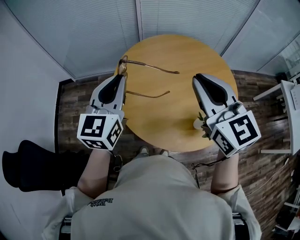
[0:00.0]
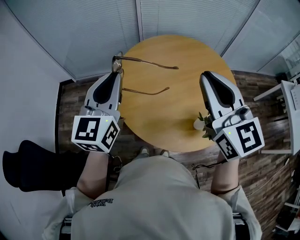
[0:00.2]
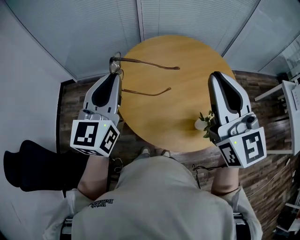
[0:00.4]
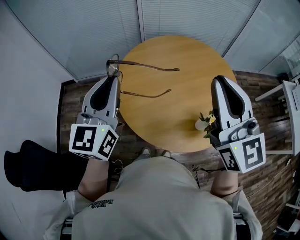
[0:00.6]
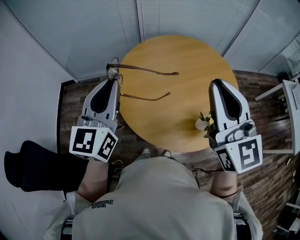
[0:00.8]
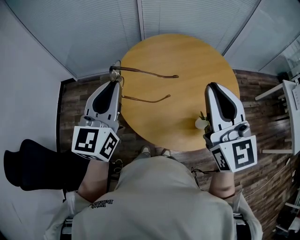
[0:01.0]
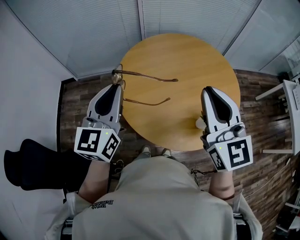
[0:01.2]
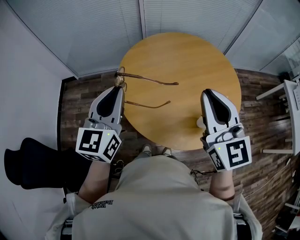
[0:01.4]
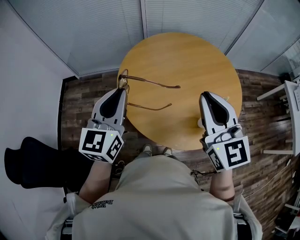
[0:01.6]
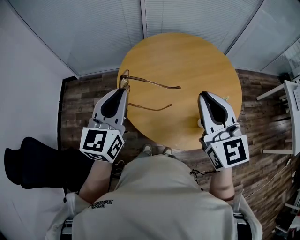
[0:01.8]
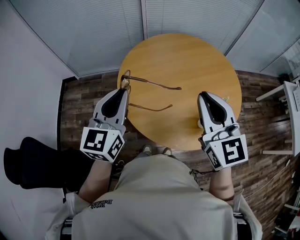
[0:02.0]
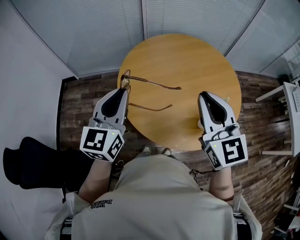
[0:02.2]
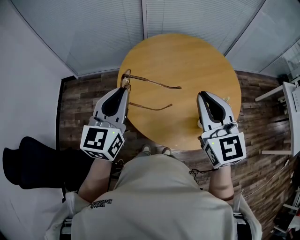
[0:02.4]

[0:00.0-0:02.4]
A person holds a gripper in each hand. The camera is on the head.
0:01.2 to 0:02.4: The grippers stay close to where they were, moving slightly.

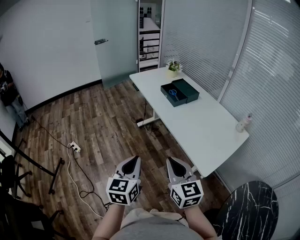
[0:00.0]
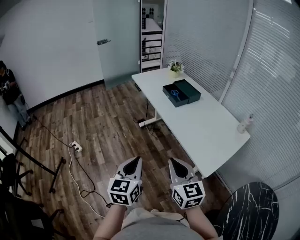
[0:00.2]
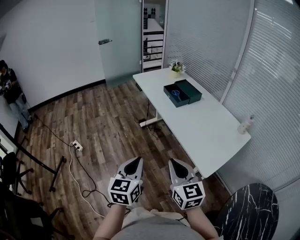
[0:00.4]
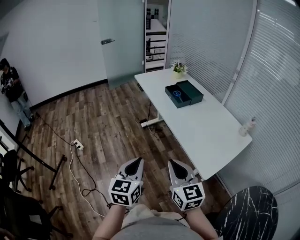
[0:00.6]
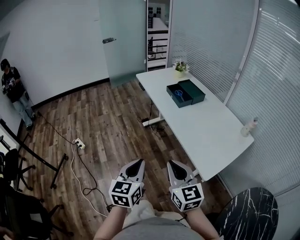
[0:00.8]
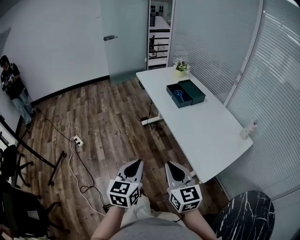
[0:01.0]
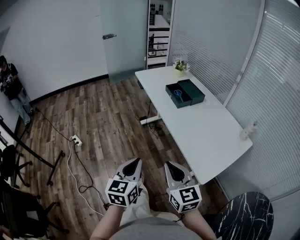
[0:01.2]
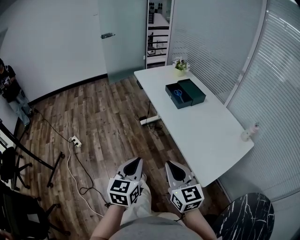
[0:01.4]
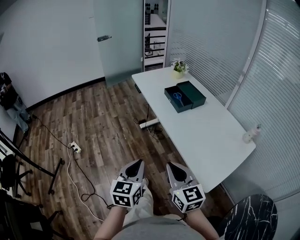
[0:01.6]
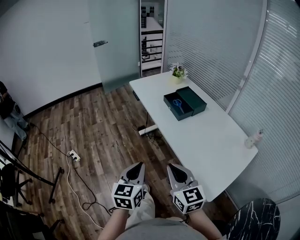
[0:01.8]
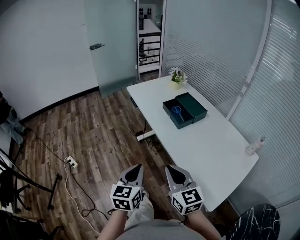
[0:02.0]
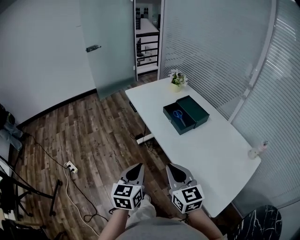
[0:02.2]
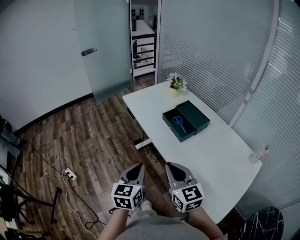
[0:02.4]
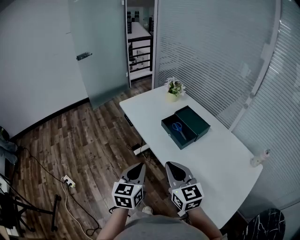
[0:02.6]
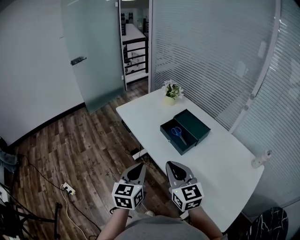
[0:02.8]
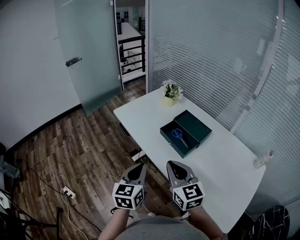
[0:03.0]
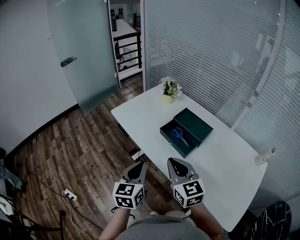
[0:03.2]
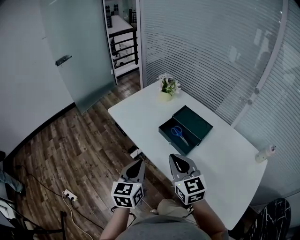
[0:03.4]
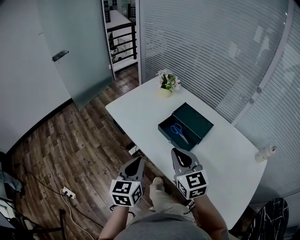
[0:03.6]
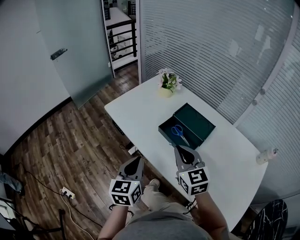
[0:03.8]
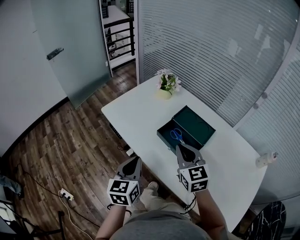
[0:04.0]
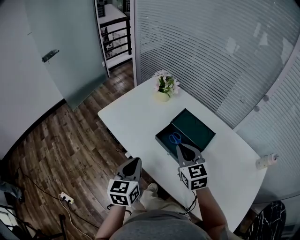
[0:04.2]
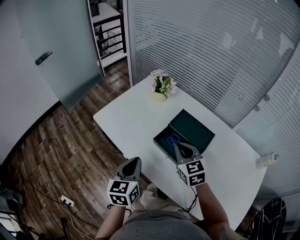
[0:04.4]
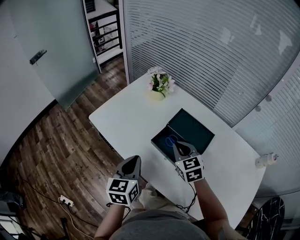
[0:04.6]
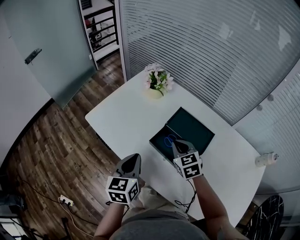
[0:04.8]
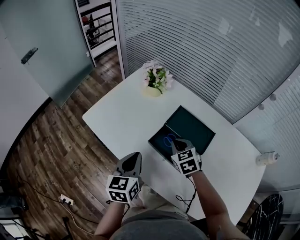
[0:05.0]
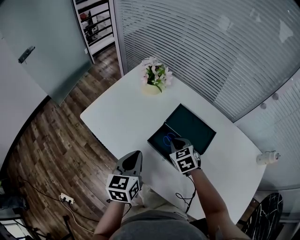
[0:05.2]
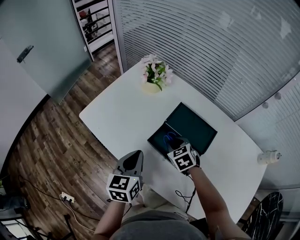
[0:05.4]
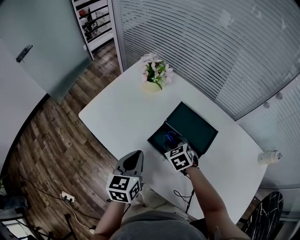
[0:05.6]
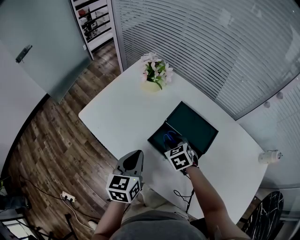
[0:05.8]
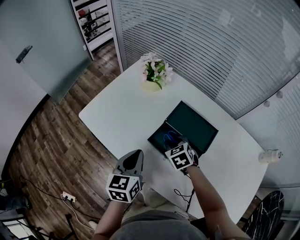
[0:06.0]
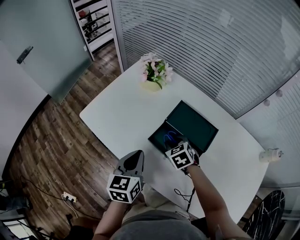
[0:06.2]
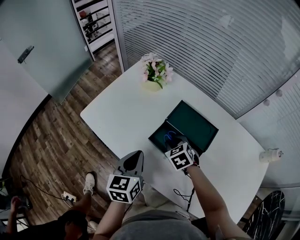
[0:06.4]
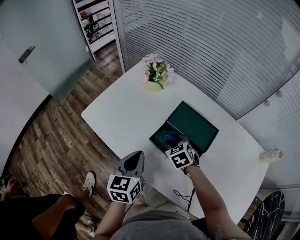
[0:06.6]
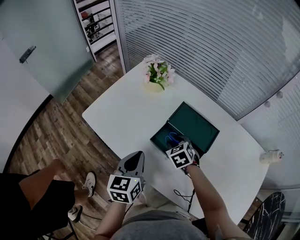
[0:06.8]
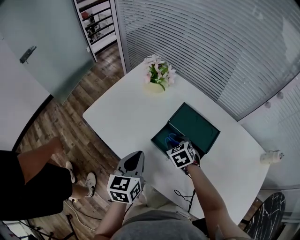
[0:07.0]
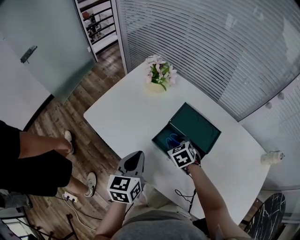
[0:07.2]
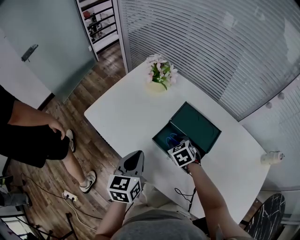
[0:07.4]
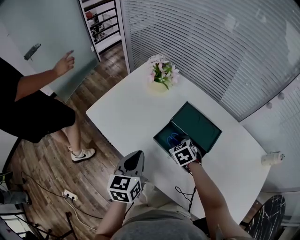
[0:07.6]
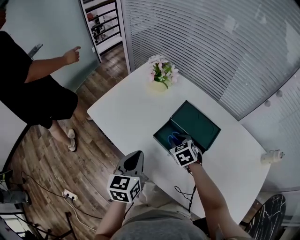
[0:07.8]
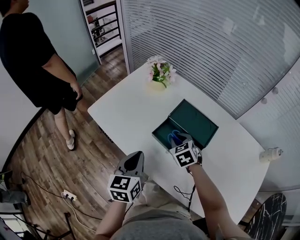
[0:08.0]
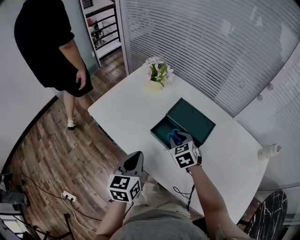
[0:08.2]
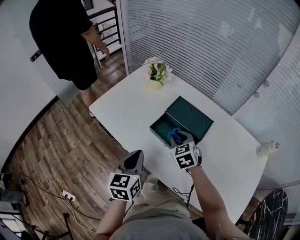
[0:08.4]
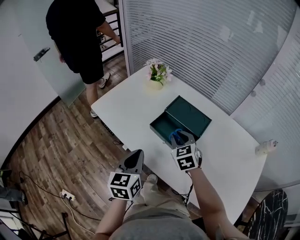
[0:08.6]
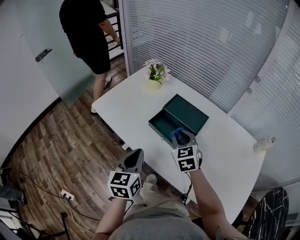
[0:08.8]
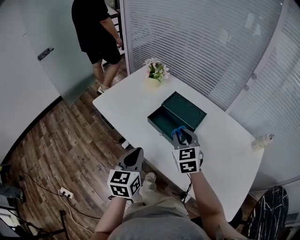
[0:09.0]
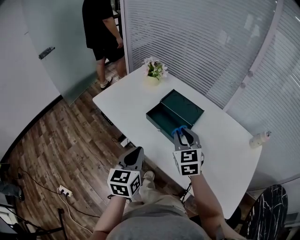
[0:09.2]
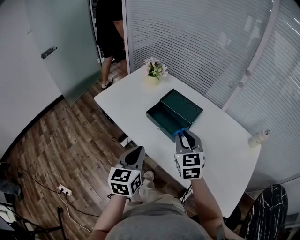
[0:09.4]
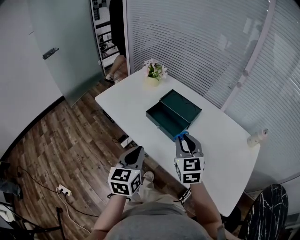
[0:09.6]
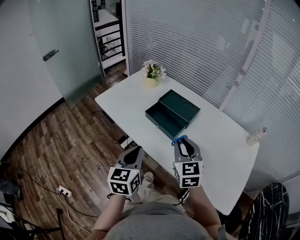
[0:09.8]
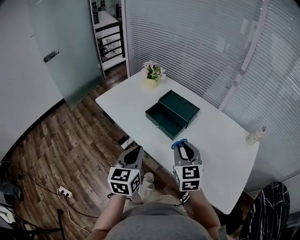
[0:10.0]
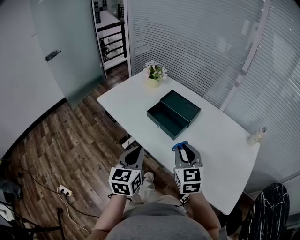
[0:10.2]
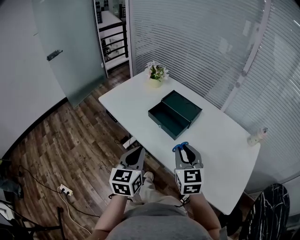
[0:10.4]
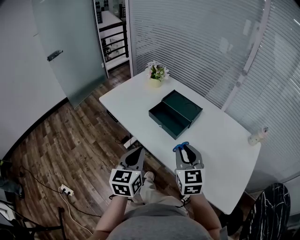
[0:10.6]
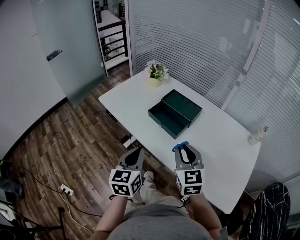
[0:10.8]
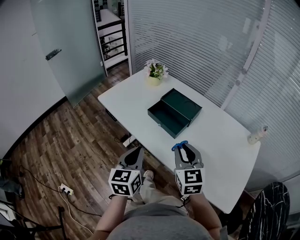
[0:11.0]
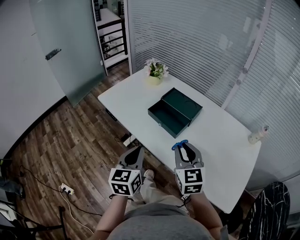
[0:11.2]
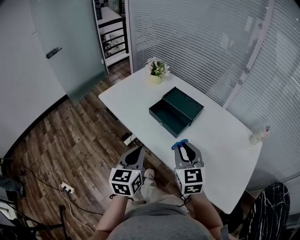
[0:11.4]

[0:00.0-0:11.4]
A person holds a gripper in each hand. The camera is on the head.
0:00.0 to 0:01.4: The left gripper changes place by about 5 cm.
0:01.4 to 0:02.8: The pair of grippers is taken forward, about 40 cm.
0:02.8 to 0:04.2: The grippers both shift forward by some 25 cm.
0:04.2 to 0:05.6: The right gripper moves downward and forward, some 20 cm, tilts its fingers roughly 30 degrees downward, and opens. The left gripper travels forward by about 10 cm.
0:05.6 to 0:07.2: The grippers stay close to where they were, moving slightly.
0:07.2 to 0:08.6: The left gripper travels backward by about 10 cm, while the right gripper heads upward and backward, covering roughly 15 cm, and turns by roughly 20 degrees.
0:08.6 to 0:10.0: The right gripper moves backward and upward, roughly 25 cm, and turns by approximately 20 degrees, while the left gripper travels backward by about 15 cm.
0:10.0 to 0:11.4: The grippers move only a little.

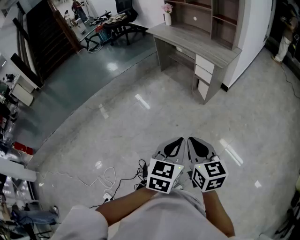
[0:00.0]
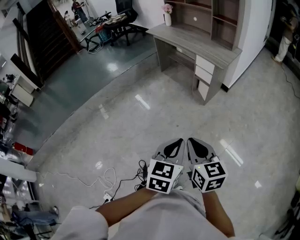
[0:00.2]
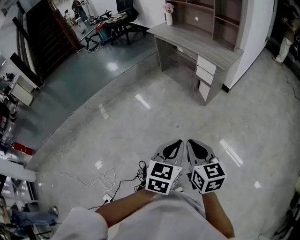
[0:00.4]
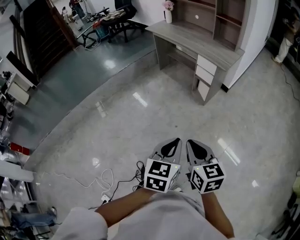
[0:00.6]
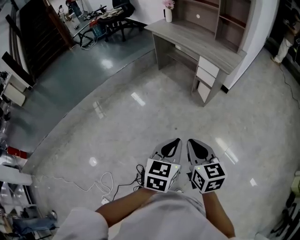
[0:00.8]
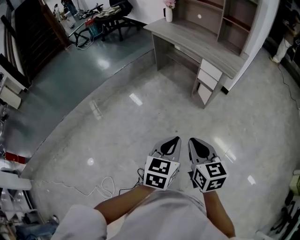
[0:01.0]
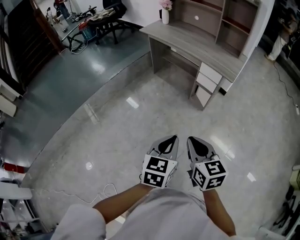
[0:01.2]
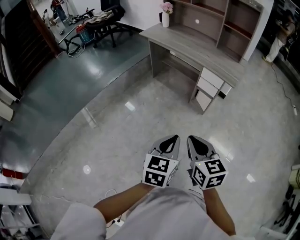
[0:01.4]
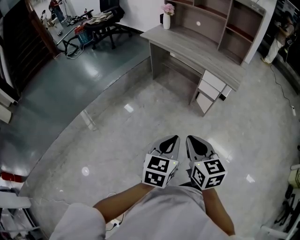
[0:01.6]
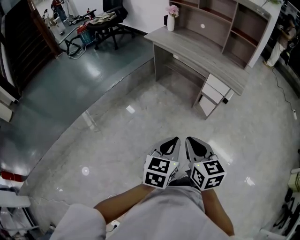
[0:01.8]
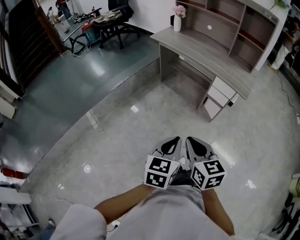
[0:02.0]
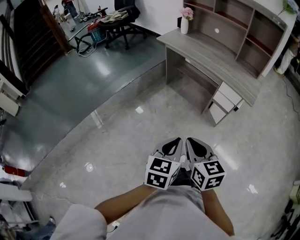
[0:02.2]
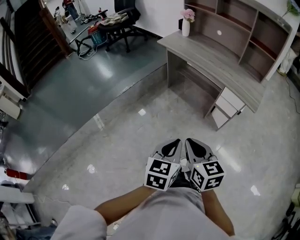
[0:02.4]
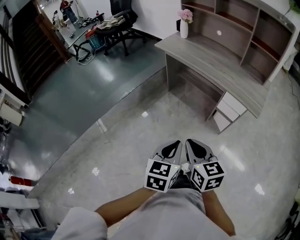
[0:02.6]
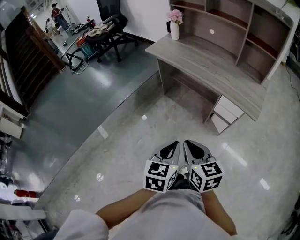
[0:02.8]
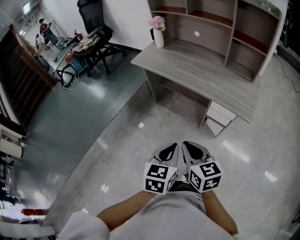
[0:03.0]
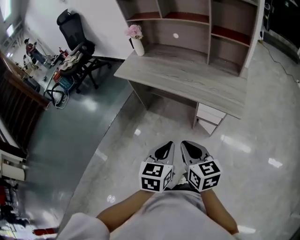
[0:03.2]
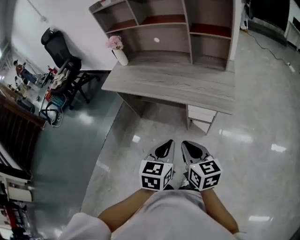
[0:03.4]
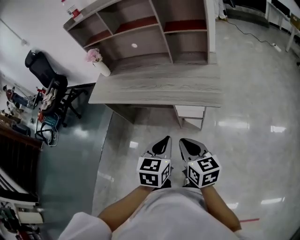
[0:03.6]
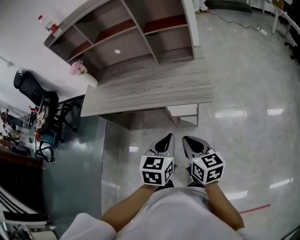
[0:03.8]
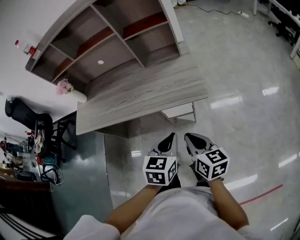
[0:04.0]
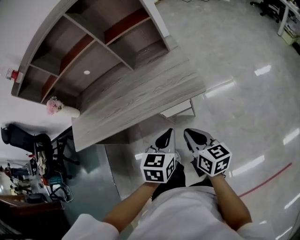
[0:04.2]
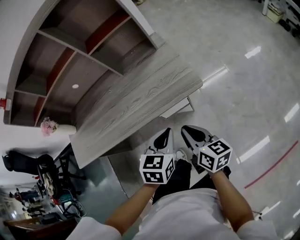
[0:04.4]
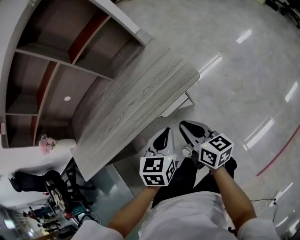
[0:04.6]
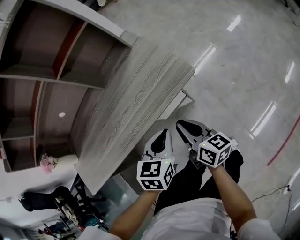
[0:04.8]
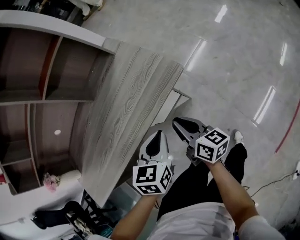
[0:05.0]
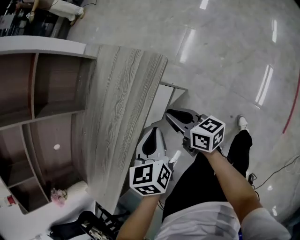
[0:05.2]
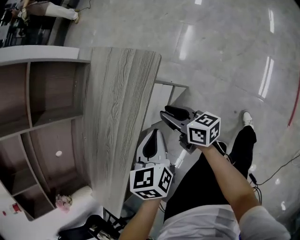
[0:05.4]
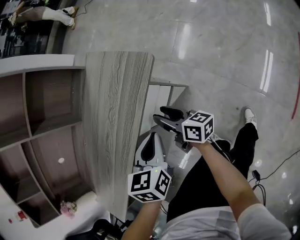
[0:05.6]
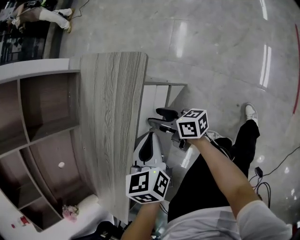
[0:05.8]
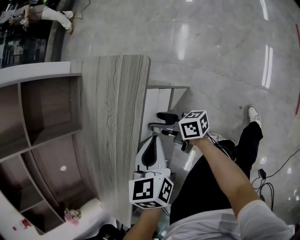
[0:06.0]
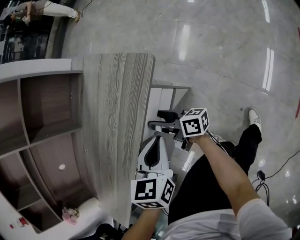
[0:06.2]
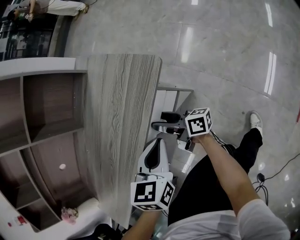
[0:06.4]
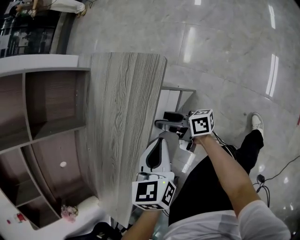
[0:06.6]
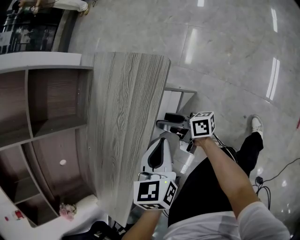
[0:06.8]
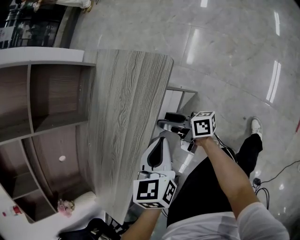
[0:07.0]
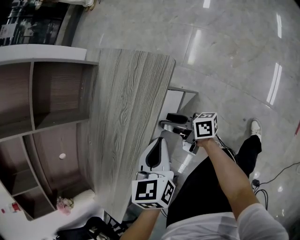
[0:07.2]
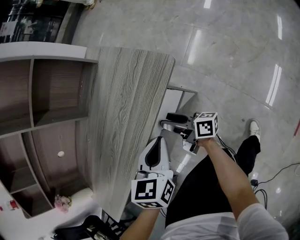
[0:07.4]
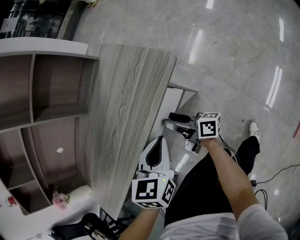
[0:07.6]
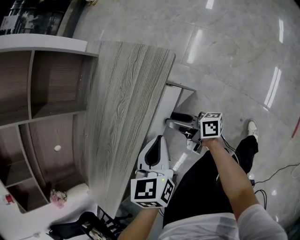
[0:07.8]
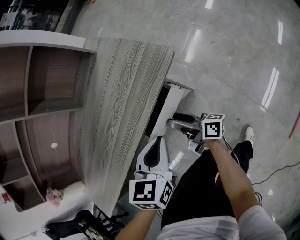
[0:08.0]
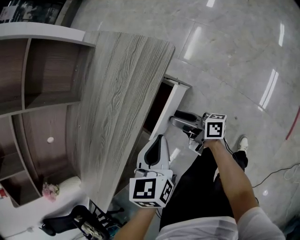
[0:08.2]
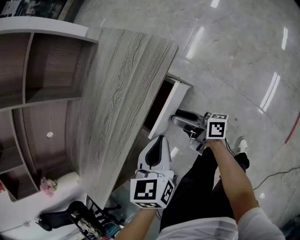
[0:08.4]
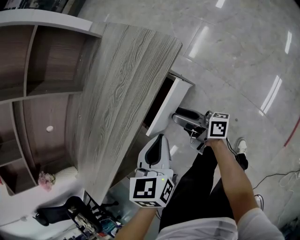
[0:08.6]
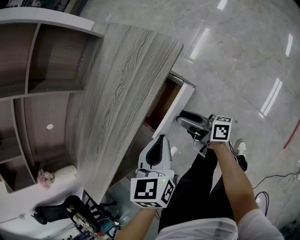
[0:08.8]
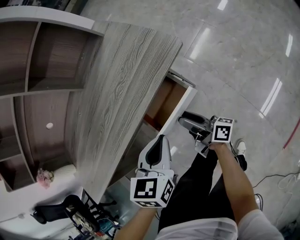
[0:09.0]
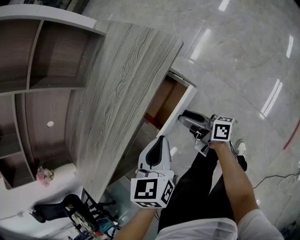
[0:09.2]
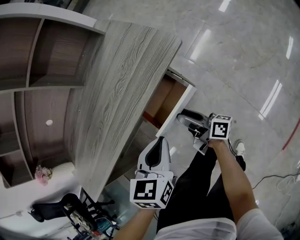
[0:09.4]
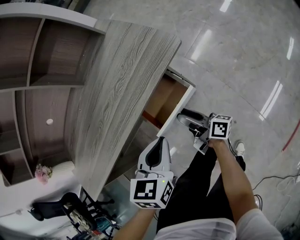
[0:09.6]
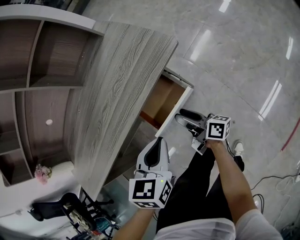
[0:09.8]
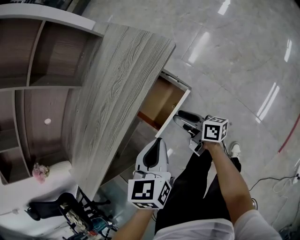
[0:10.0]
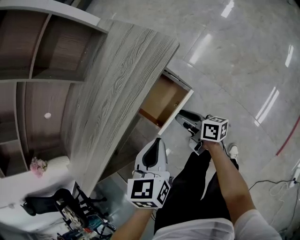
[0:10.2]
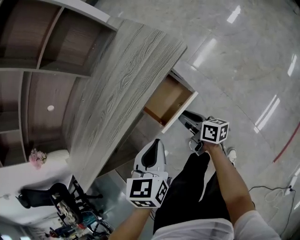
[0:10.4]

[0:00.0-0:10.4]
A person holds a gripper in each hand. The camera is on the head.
0:00.0 to 0:01.4: Both grippers move forward and to the left, about 30 cm.
0:01.4 to 0:03.0: The two grippers go some 30 cm forward.
0:03.0 to 0:04.4: The left gripper changes place by approximately 30 cm, and rotates approximately 50 degrees. The right gripper changes place by some 30 cm, and swivels some 60 degrees.
0:04.4 to 0:06.0: The right gripper heads downward and forward, covering roughly 25 cm, changes its angle by about 40 degrees, and opens its fingers. The left gripper moves downward, approximately 15 cm, and rotates approximately 30 degrees.
0:06.0 to 0:07.4: The grippers make only small movements.
0:07.4 to 0:09.0: Both grippers move backward, about 5 cm.
0:09.0 to 0:10.4: The right gripper swivels about 20 degrees, and closes.
